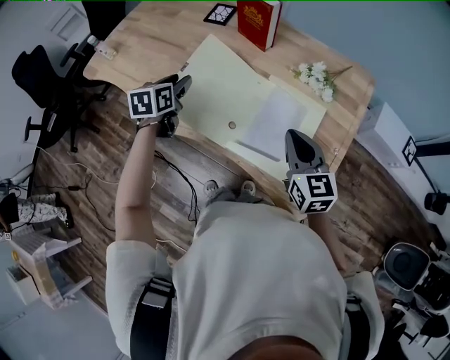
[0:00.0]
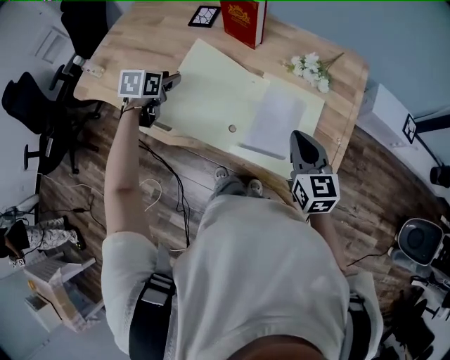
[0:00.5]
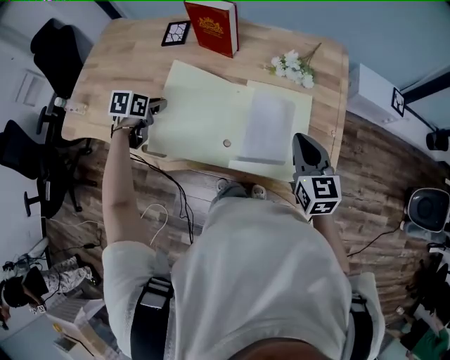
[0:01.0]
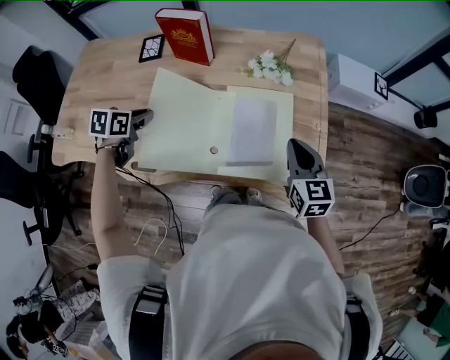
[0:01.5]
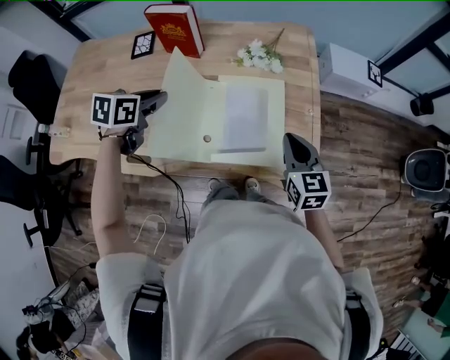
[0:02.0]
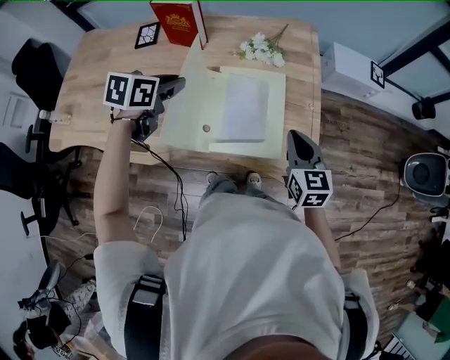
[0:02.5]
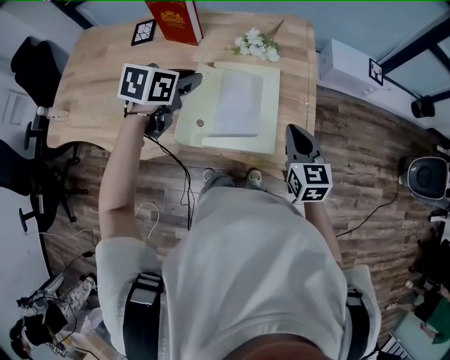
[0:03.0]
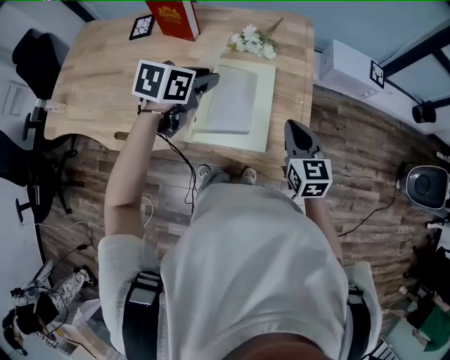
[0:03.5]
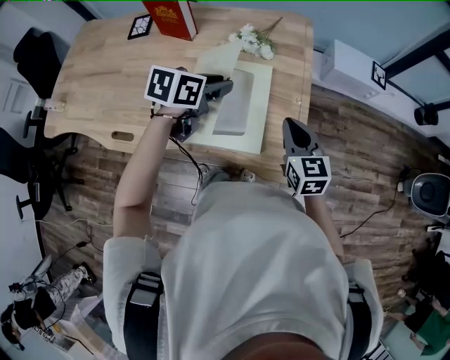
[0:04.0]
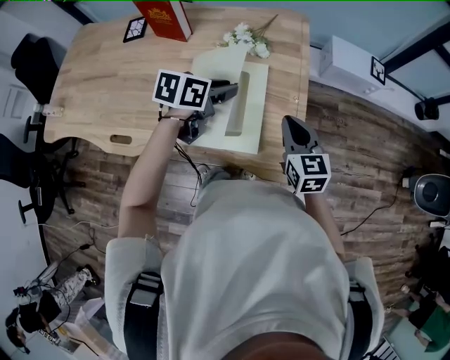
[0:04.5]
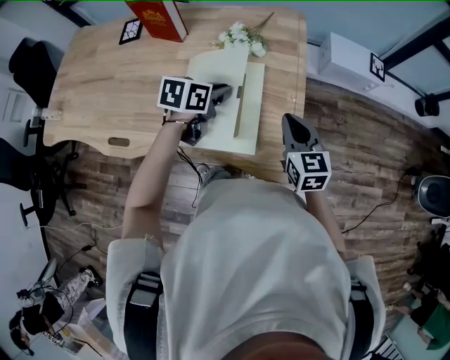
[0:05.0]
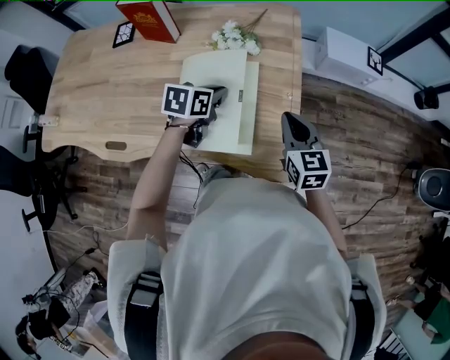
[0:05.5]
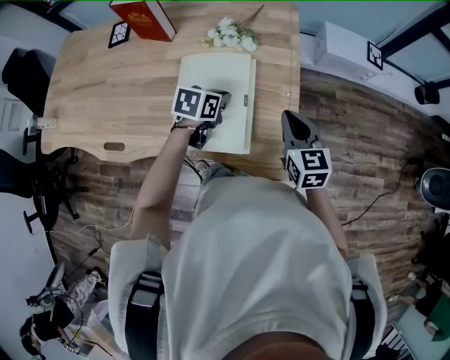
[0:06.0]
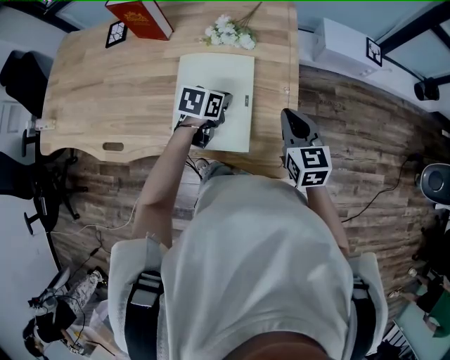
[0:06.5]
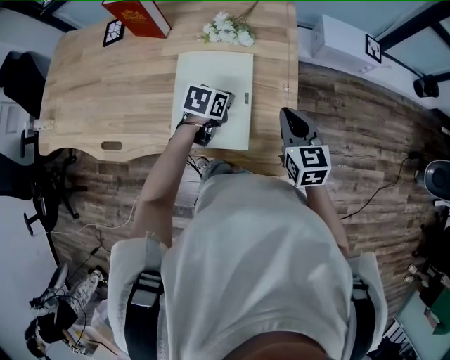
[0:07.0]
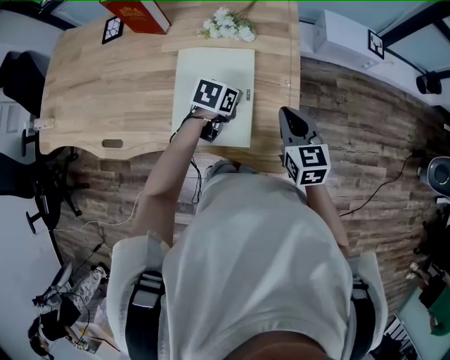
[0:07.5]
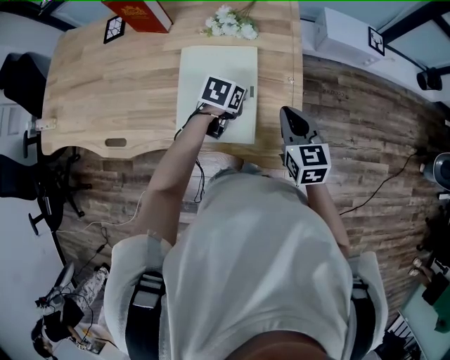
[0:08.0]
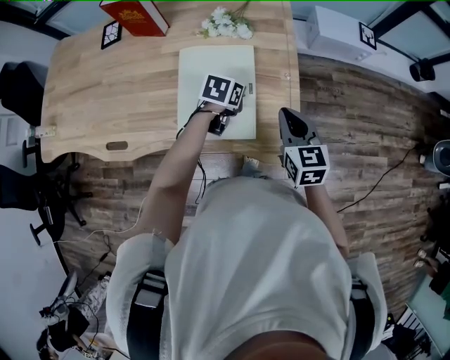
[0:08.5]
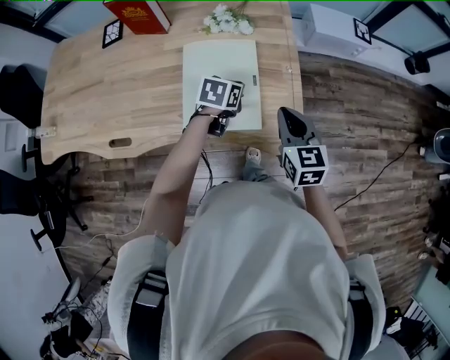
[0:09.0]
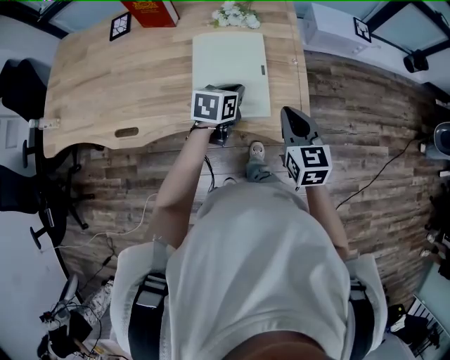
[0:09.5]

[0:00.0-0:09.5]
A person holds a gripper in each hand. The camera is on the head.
0:00.0 to 0:02.0: The left gripper moves about 10 cm downward and comes back, rotates approximately 40 degrees, and closes its fingers, while the right gripper moves roughly 10 cm, and rotates approximately 30 degrees.
0:02.0 to 0:04.0: The left gripper heads to the right, covering roughly 25 cm; the right gripper shifts approximately 5 cm to the right.
0:04.0 to 0:05.5: The left gripper is displaced downward by roughly 10 cm, and closes its fingers.
0:05.5 to 0:07.5: The left gripper moves downward and to the right, roughly 10 cm.
0:07.5 to 0:09.5: The right gripper is displaced backward by roughly 10 cm; the left gripper shifts roughly 10 cm backward and upward.

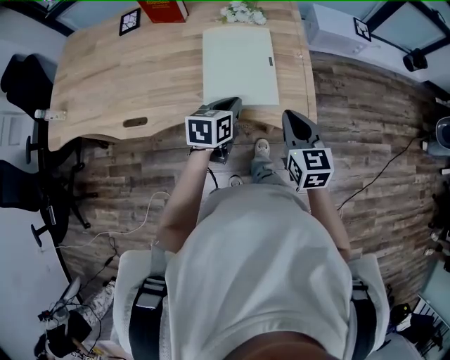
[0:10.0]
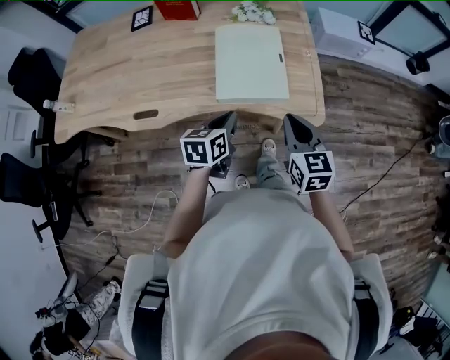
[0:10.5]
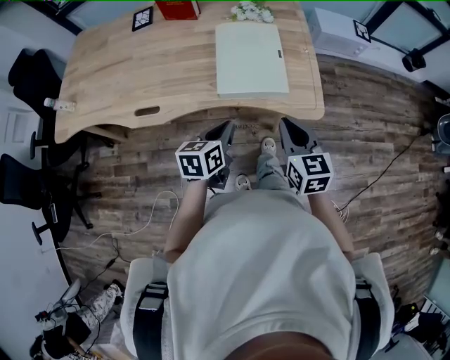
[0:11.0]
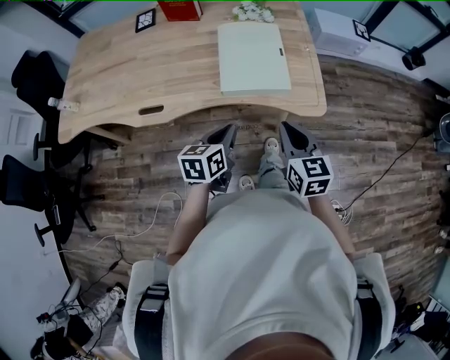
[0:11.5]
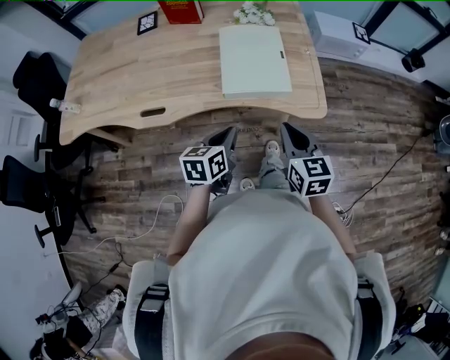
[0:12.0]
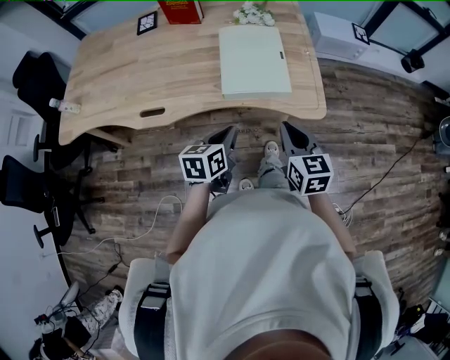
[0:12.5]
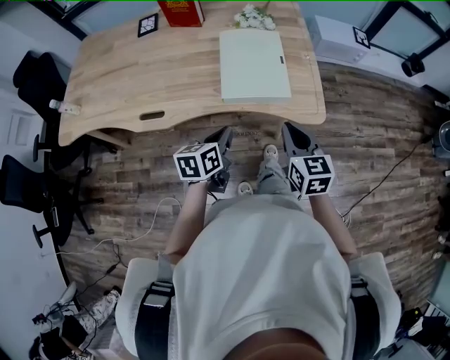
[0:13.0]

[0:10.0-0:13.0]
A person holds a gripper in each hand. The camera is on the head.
0:10.0 to 0:11.5: Both grippers travel together backward, approximately 15 cm.
0:11.5 to 0:13.0: The grippers make only small movements.

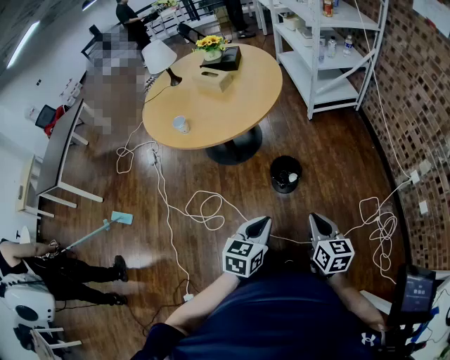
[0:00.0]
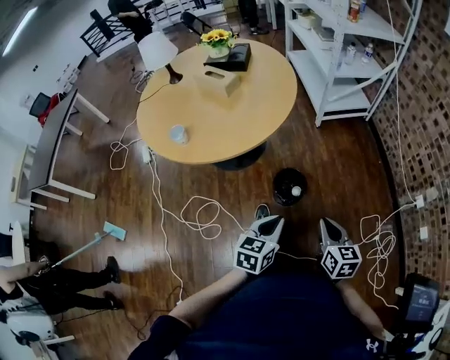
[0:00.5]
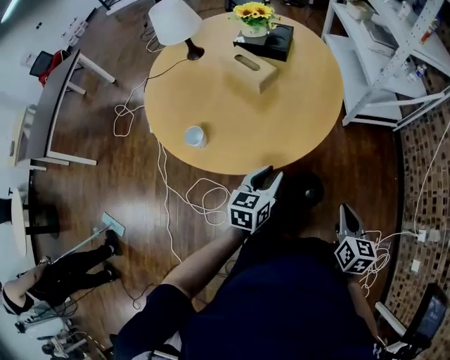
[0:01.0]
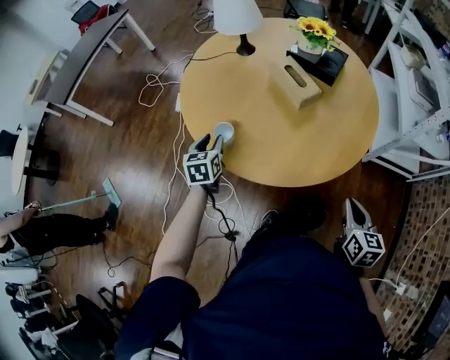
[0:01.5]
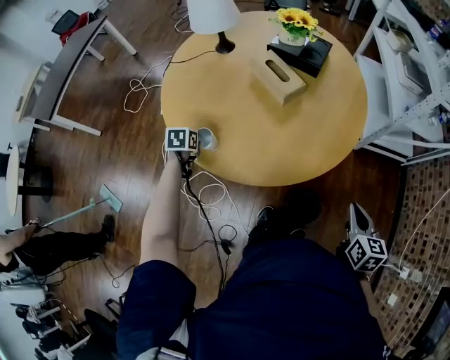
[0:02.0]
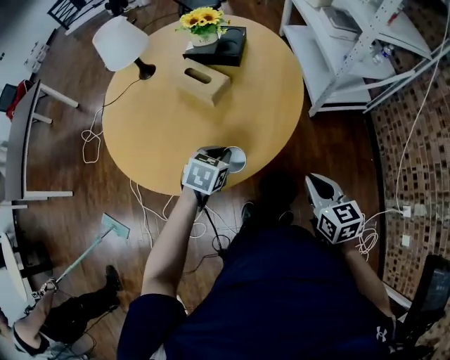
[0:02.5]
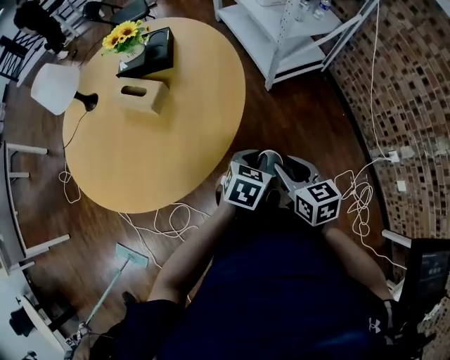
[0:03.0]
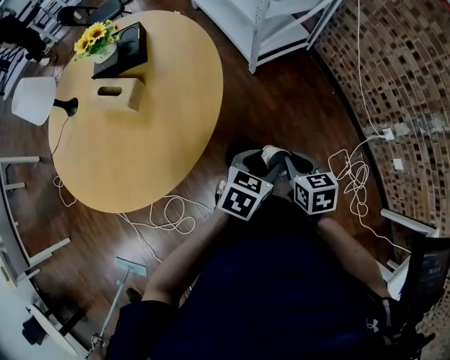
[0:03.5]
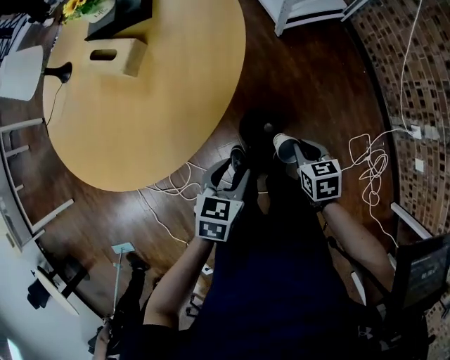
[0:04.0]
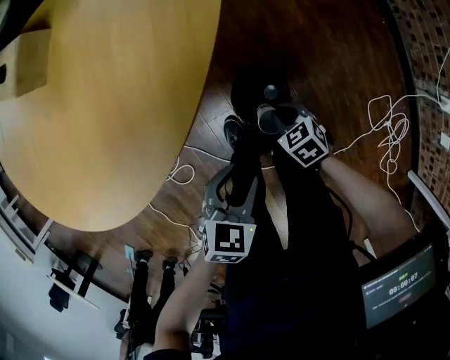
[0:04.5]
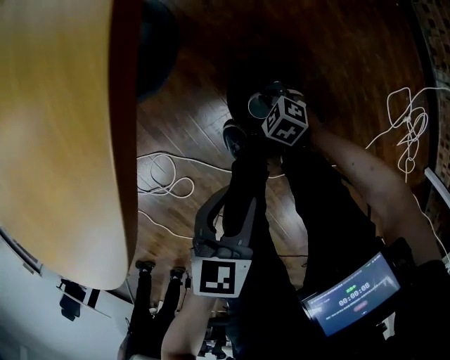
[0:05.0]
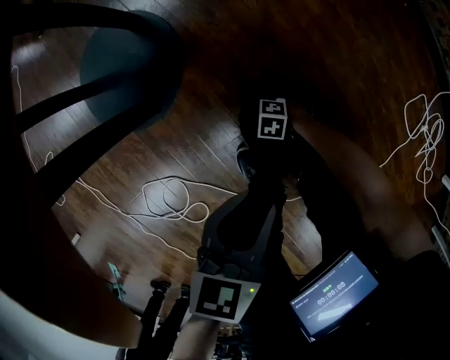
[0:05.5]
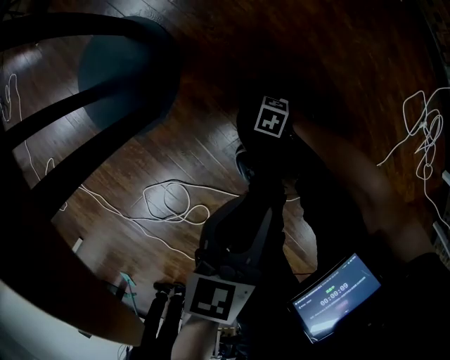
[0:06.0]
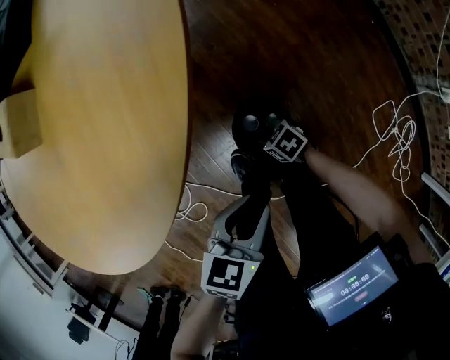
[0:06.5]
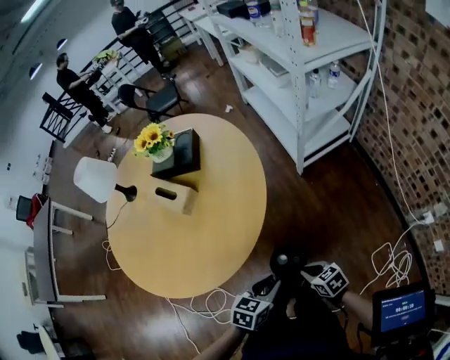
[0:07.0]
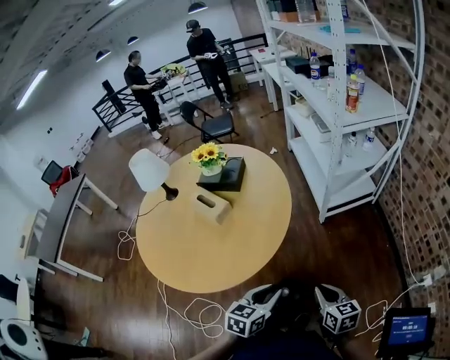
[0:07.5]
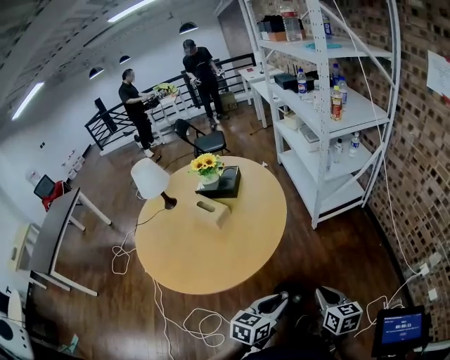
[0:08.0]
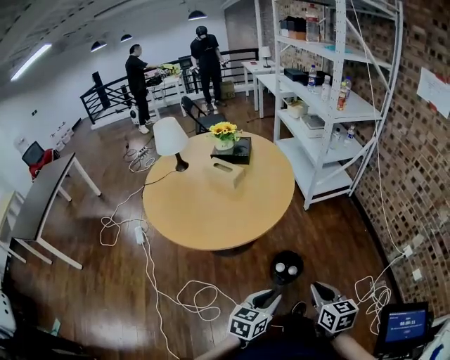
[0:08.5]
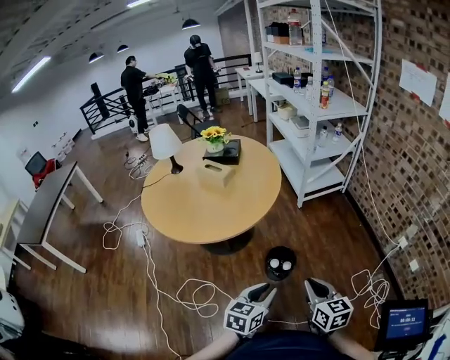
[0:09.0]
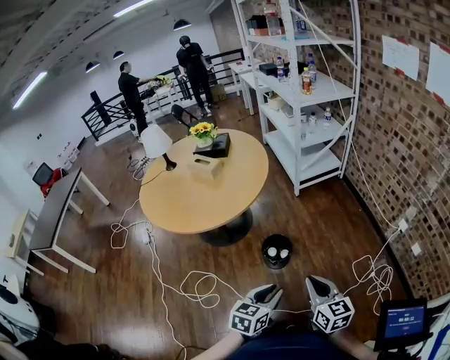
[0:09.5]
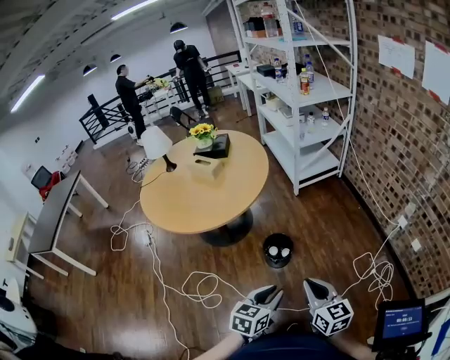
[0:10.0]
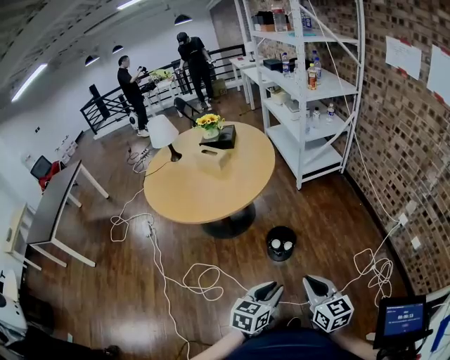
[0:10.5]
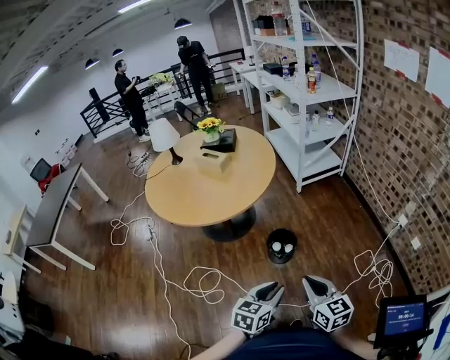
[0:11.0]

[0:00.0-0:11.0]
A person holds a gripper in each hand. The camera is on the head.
0:00.0 to 0:02.0: The right gripper moves approximately 40 cm; the left gripper moves some 70 cm, points its fingers about 30 degrees further downward, and opens, then closes once more.
0:02.0 to 0:03.5: The left gripper moves some 60 cm, turns by roughly 70 degrees, and opens up. Meanwhile the right gripper moves roughly 15 cm, swivels about 20 degrees, and opens and closes again.
0:03.5 to 0:05.5: The left gripper shifts roughly 35 cm downward, while the right gripper moves downward, about 70 cm, and changes its angle by about 70 degrees.
0:05.5 to 0:07.5: The right gripper shifts roughly 70 cm upward, and tilts its fingers roughly 40 degrees upward. The left gripper travels upward by some 40 cm, and turns by some 30 degrees.
0:07.5 to 0:09.0: The two grippers go roughly 30 cm backward.
0:09.0 to 0:11.0: The left gripper moves backward and to the right, about 10 cm; the right gripper travels backward by some 10 cm.

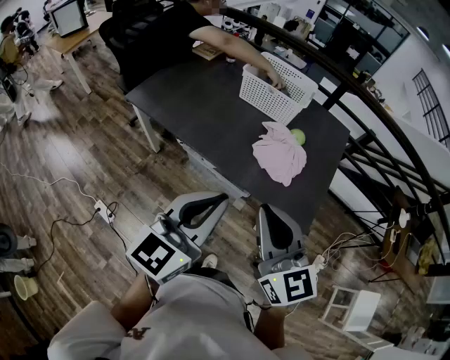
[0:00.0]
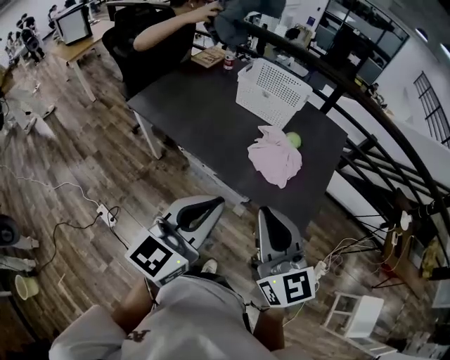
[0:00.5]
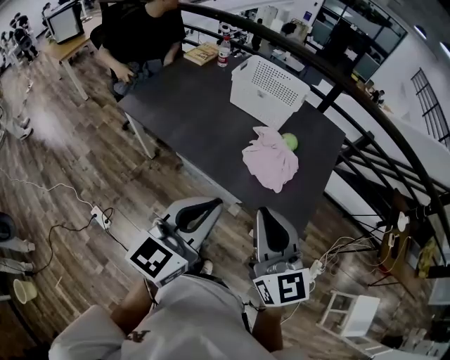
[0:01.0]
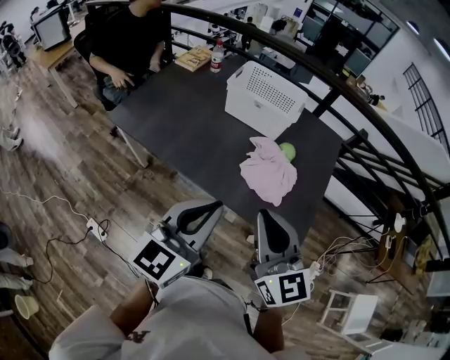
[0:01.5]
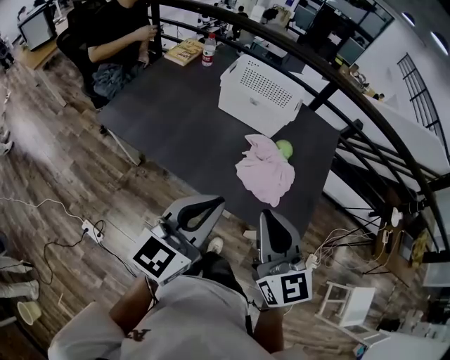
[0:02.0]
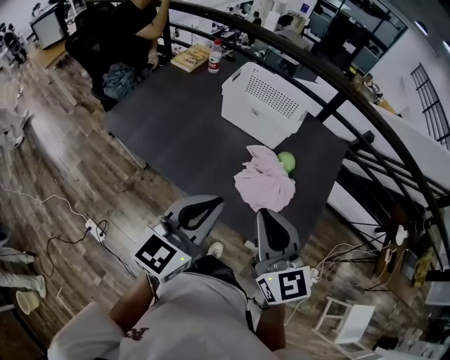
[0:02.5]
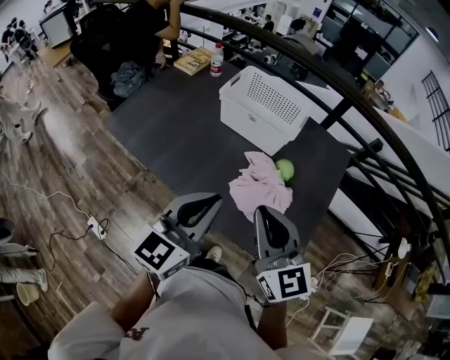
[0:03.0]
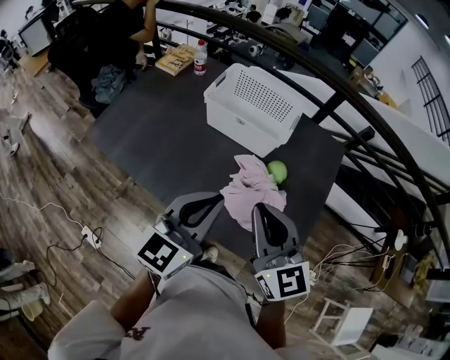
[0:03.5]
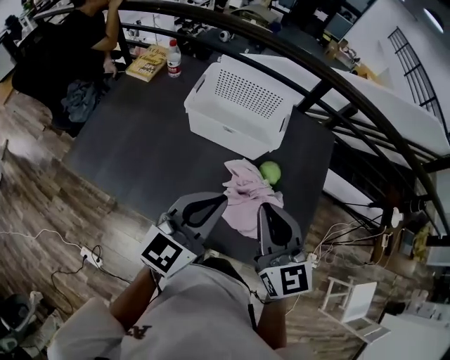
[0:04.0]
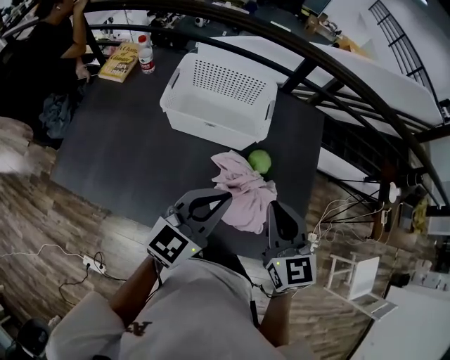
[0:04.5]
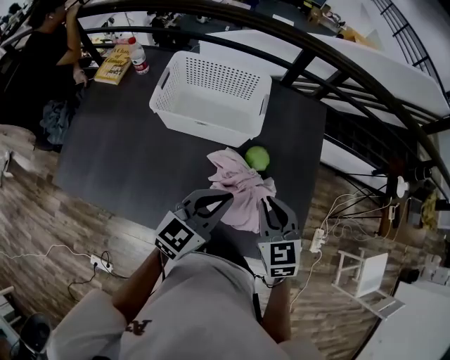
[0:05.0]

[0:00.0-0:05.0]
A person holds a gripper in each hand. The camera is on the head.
0:00.0 to 0:02.5: Both grippers travel together forward, roughly 20 cm.
0:02.5 to 0:05.0: The left gripper shifts by approximately 25 cm, and swivels approximately 30 degrees. Meanwhile the right gripper shifts by about 25 cm, and changes its angle by roughly 40 degrees.
